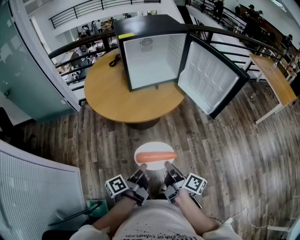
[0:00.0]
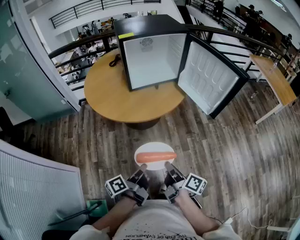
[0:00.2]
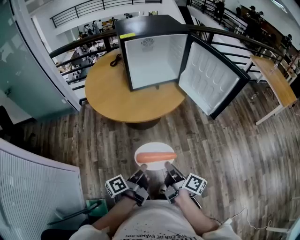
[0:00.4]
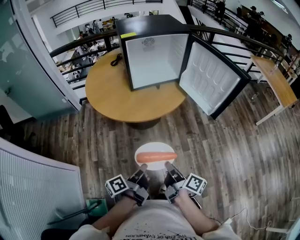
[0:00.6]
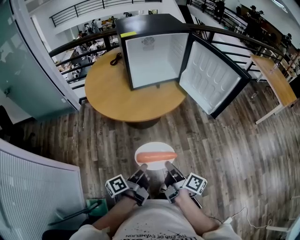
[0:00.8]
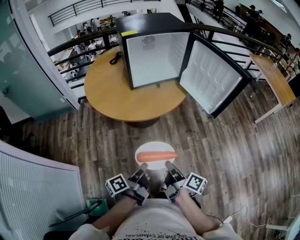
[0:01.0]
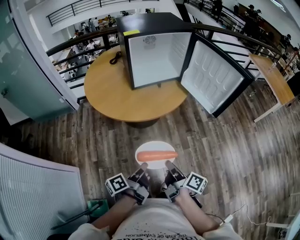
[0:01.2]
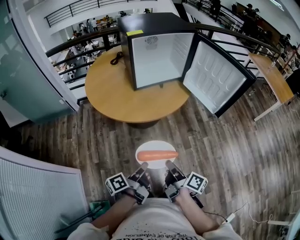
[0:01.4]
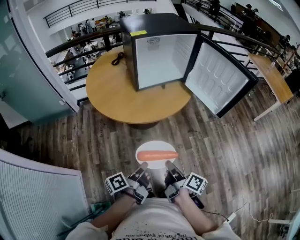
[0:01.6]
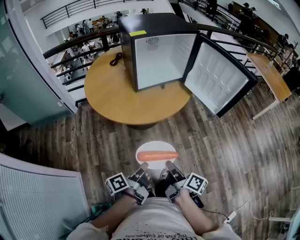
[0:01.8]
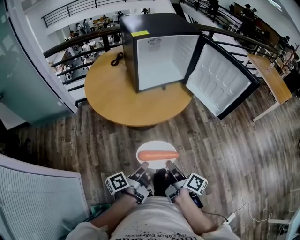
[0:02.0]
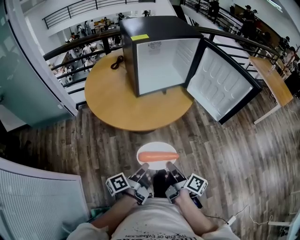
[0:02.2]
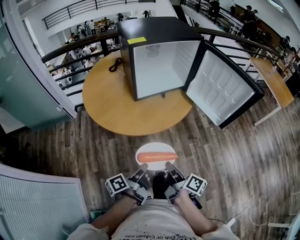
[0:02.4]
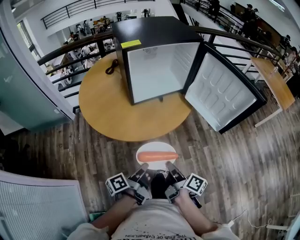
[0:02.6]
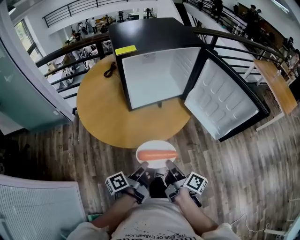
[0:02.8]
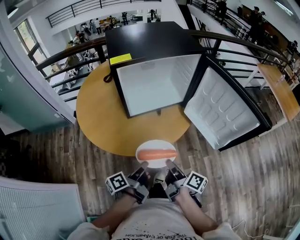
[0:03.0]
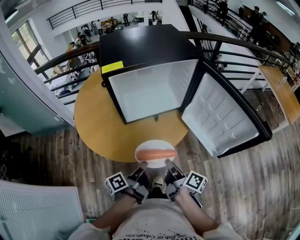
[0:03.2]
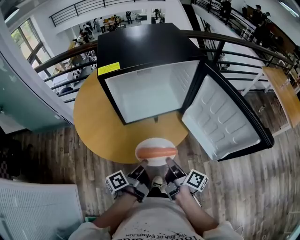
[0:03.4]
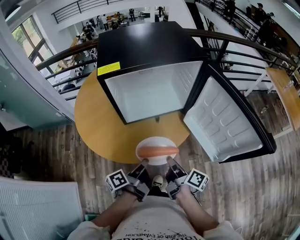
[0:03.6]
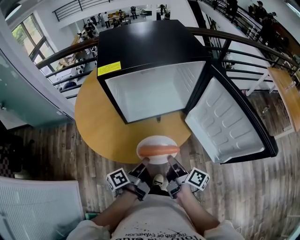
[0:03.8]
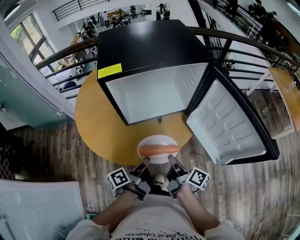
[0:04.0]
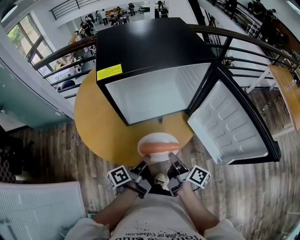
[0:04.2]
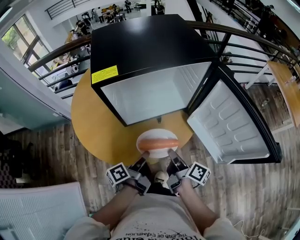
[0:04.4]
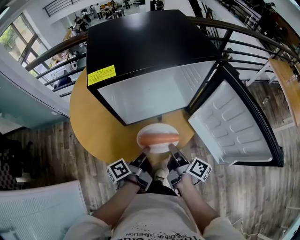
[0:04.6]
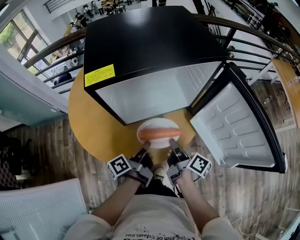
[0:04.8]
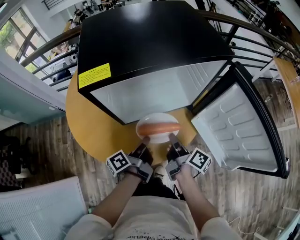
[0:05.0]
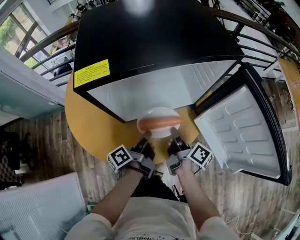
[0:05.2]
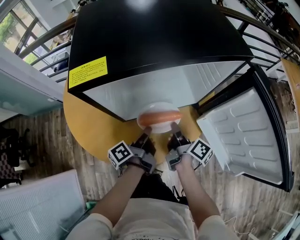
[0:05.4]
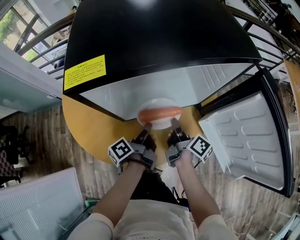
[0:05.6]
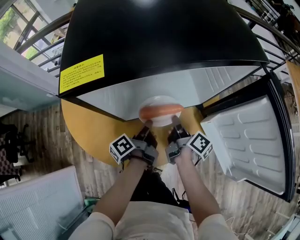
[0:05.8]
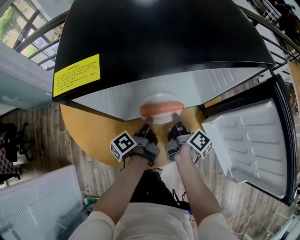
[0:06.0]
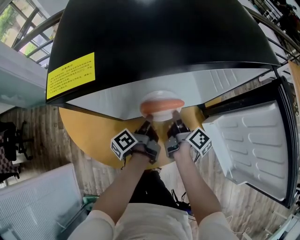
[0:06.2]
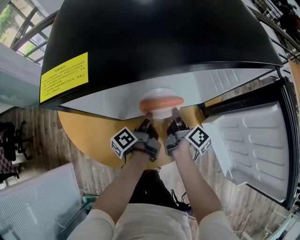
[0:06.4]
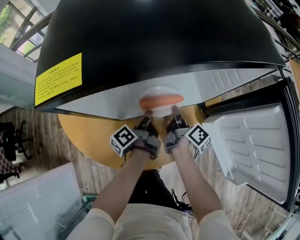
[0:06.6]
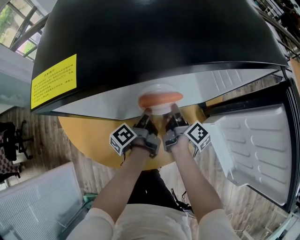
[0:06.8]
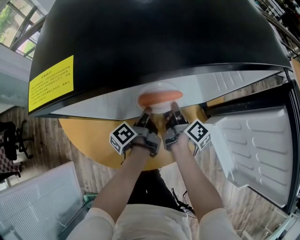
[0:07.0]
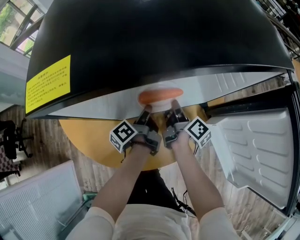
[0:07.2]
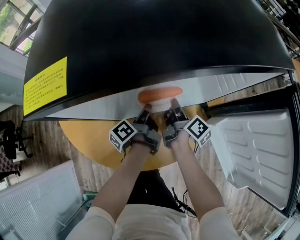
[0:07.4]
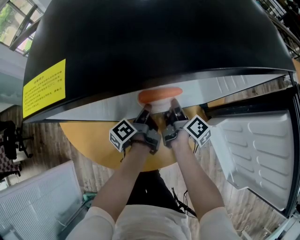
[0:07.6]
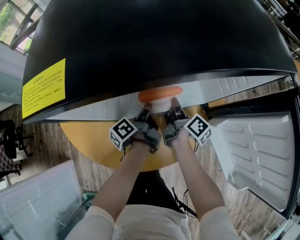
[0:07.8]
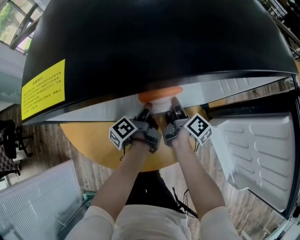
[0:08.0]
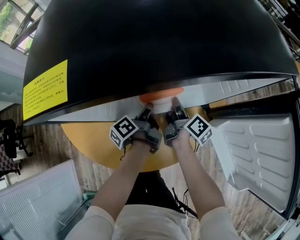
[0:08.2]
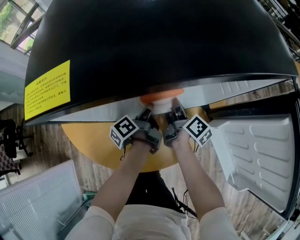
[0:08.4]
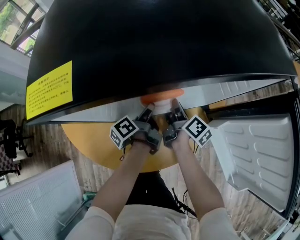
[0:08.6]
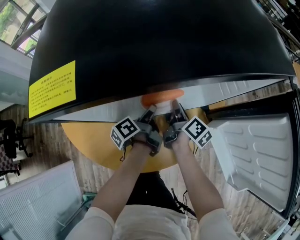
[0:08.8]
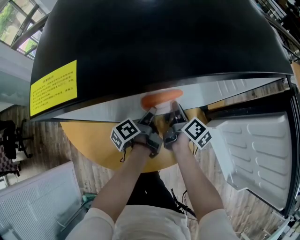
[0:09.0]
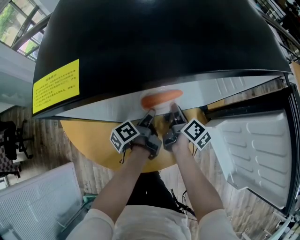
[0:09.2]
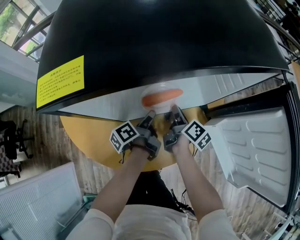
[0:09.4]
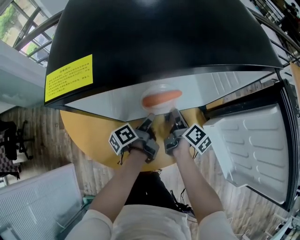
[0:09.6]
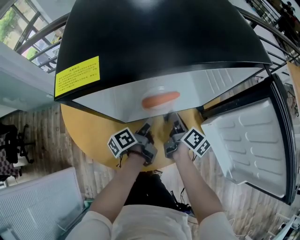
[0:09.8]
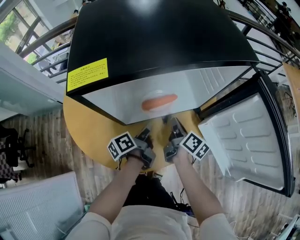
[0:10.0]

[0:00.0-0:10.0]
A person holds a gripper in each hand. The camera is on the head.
0:00.0 to 0:01.4: The right gripper ends up some 5 cm from where it was.
0:01.4 to 0:02.8: The right gripper moves about 20 cm.
0:02.8 to 0:04.2: The right gripper moves roughly 20 cm.
0:04.2 to 0:05.8: The right gripper ends up roughly 25 cm from where it was.
0:05.8 to 0:07.2: The right gripper ends up approximately 10 cm from where it was.
0:08.6 to 0:10.0: The right gripper ends up approximately 10 cm from where it was.

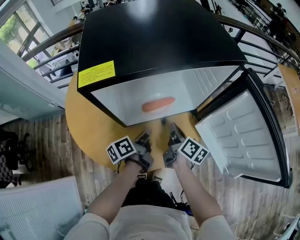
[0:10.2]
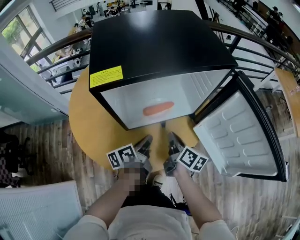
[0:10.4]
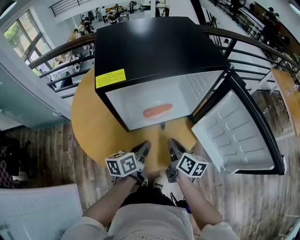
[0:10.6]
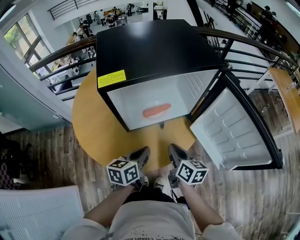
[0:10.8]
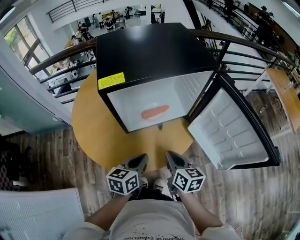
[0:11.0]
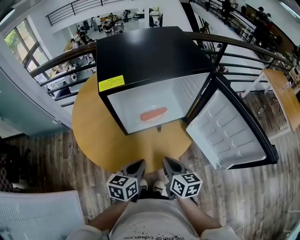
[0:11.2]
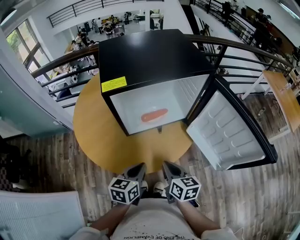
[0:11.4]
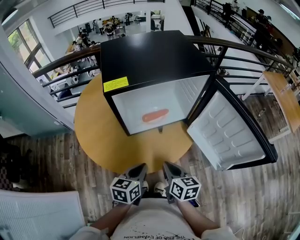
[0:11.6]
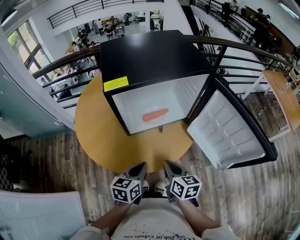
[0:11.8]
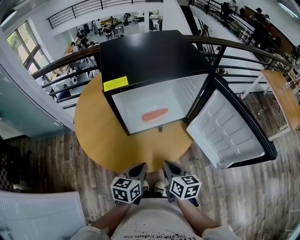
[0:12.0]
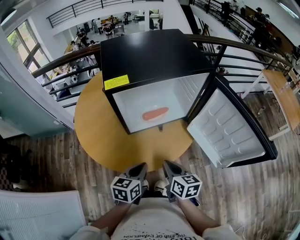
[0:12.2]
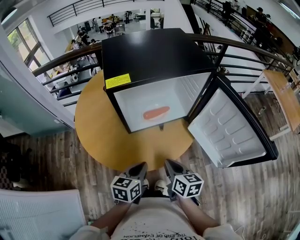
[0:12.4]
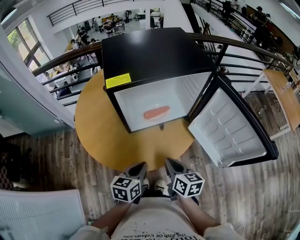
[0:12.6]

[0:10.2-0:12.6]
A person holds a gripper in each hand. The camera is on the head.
0:10.2 to 0:11.4: The right gripper ends up approximately 20 cm from where it was, and turns by some 30 degrees.

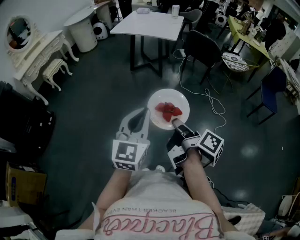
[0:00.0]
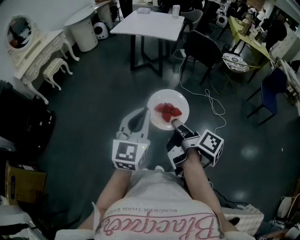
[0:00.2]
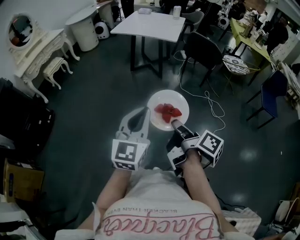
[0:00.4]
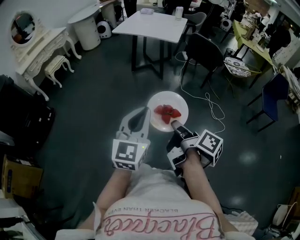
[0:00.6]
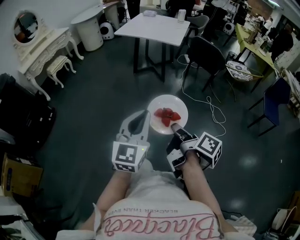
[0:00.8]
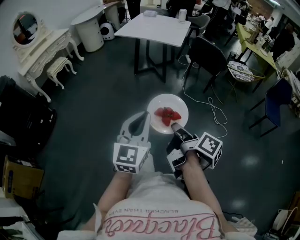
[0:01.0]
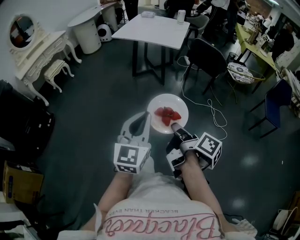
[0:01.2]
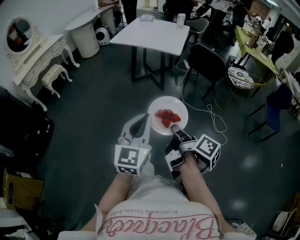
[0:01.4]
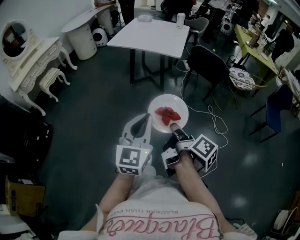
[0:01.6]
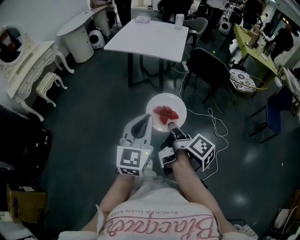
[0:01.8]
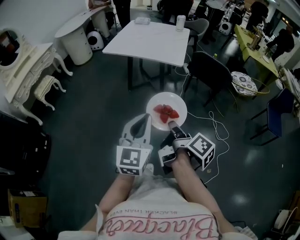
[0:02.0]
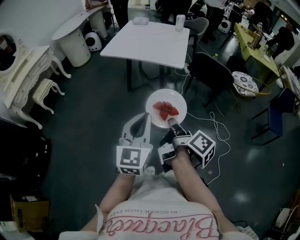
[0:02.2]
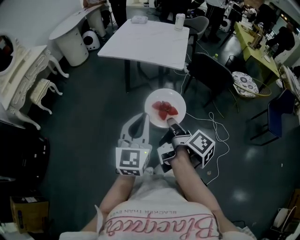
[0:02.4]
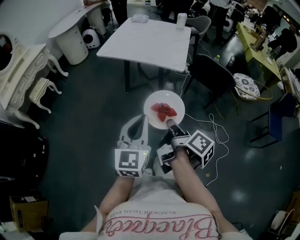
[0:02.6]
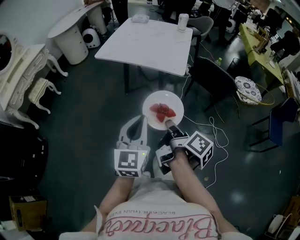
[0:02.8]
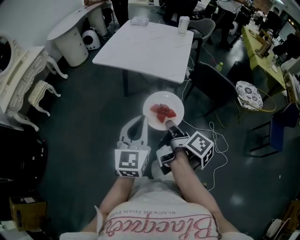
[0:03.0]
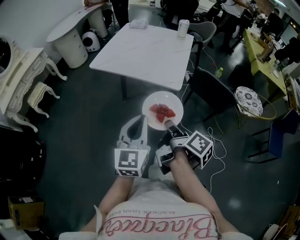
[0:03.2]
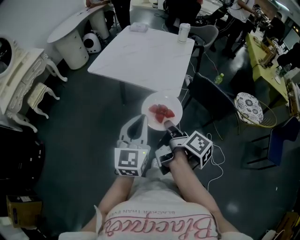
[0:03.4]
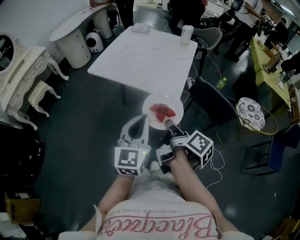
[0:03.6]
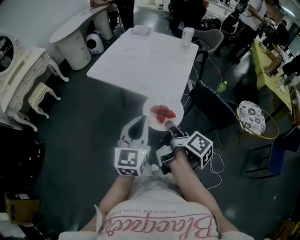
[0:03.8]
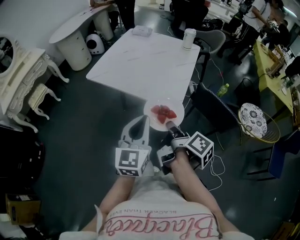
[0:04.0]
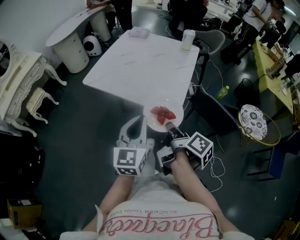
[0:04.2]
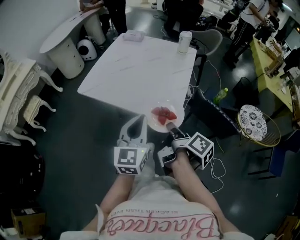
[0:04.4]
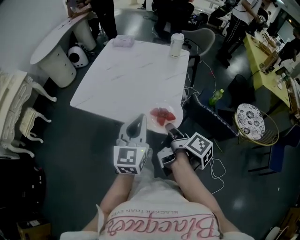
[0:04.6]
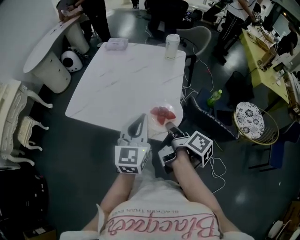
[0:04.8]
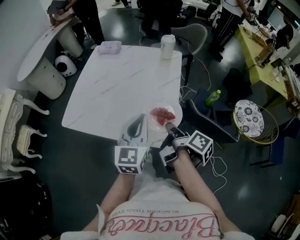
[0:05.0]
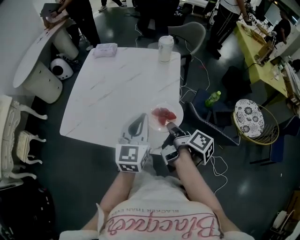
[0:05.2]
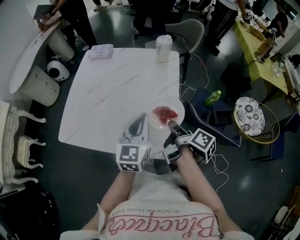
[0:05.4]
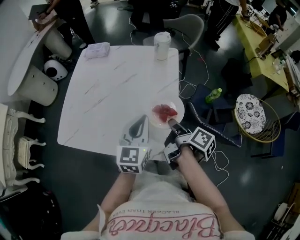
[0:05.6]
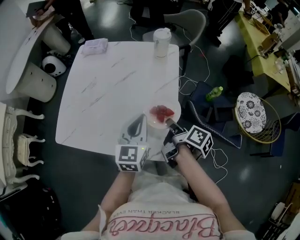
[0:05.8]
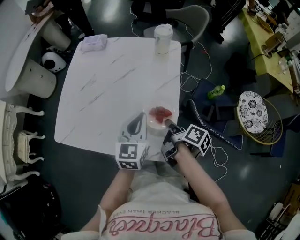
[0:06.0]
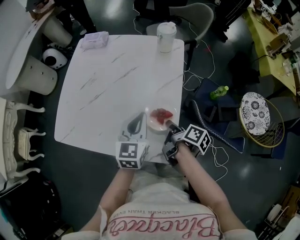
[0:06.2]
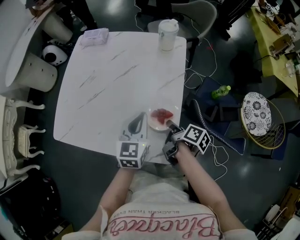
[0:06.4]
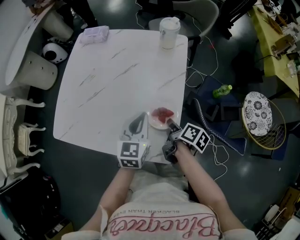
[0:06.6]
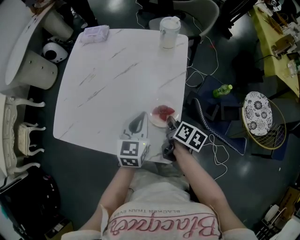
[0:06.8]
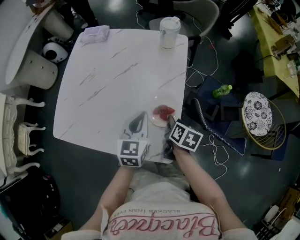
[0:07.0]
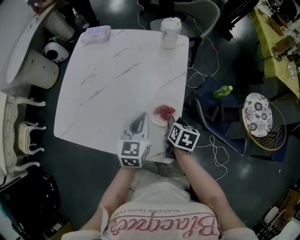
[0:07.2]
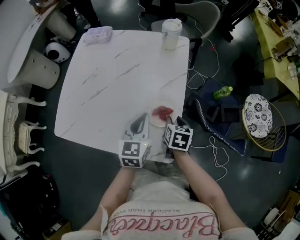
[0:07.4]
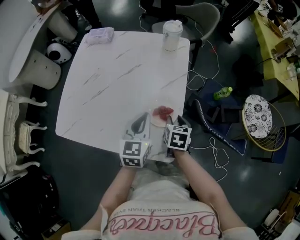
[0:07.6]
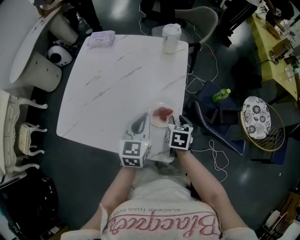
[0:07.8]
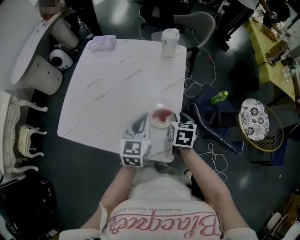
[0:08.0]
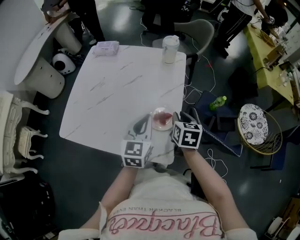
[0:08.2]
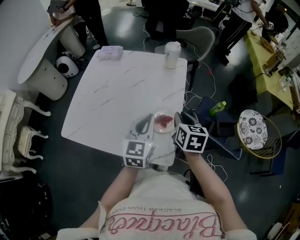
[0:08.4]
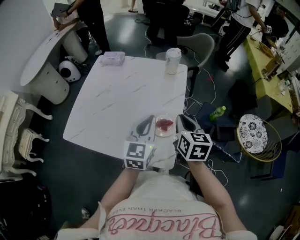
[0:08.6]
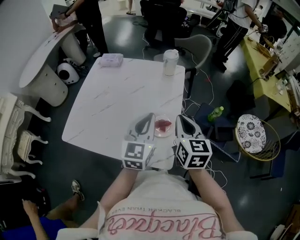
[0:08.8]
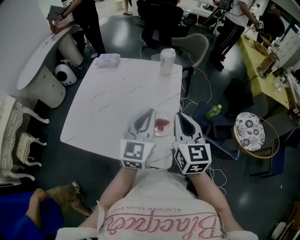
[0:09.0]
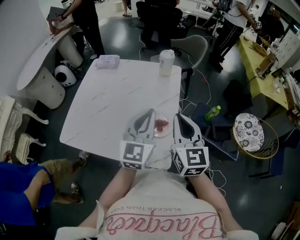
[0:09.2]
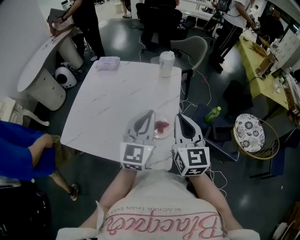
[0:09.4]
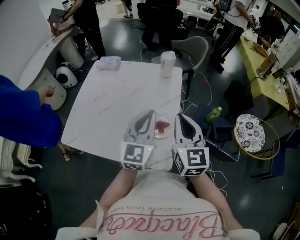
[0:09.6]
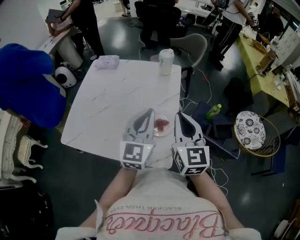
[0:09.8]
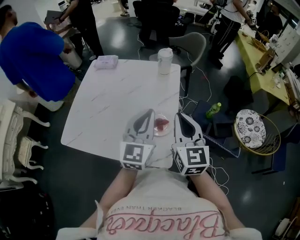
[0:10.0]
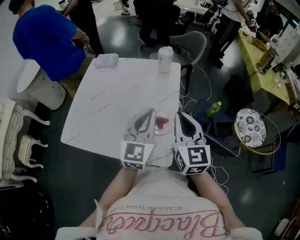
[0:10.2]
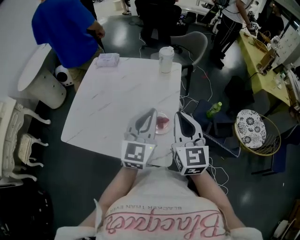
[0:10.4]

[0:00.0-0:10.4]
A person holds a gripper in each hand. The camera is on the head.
0:00.0 to 0:01.4: The grippers both shift forward by about 15 cm.
0:01.4 to 0:03.0: The pair of grippers is taken forward, some 40 cm.
0:03.0 to 0:04.4: The grippers both shift forward by roughly 30 cm.
0:04.4 to 0:06.0: The left gripper heads forward, covering some 30 cm; the right gripper heads forward and downward, covering some 30 cm.
0:06.0 to 0:07.4: The right gripper travels downward by about 5 cm, twists some 50 degrees counterclockwise, seen from behind, and opens up.
0:07.4 to 0:09.0: The right gripper is displaced upward by roughly 25 cm, points its fingers about 40 degrees further upward, and closes up, while the left gripper is displaced upward by roughly 15 cm, and rotates about 20 degrees.
0:09.0 to 0:10.4: The grippers stay close to where they were, moving slightly.

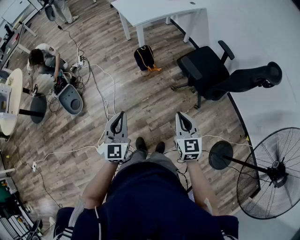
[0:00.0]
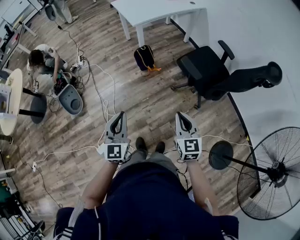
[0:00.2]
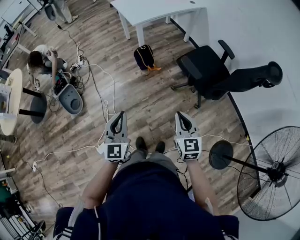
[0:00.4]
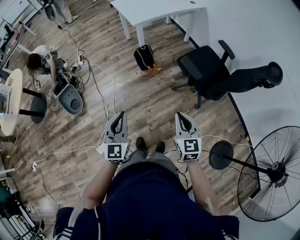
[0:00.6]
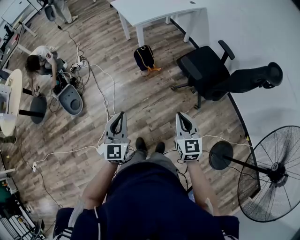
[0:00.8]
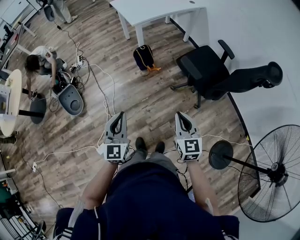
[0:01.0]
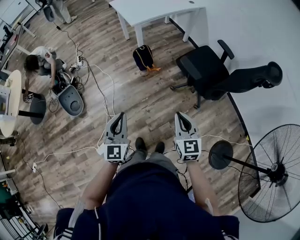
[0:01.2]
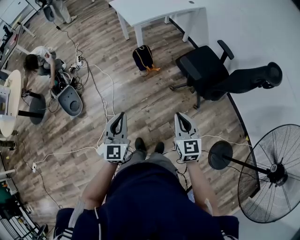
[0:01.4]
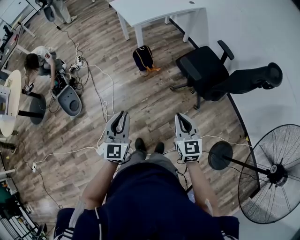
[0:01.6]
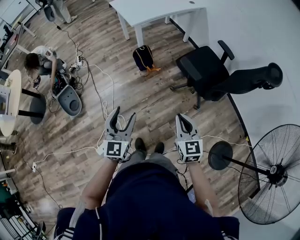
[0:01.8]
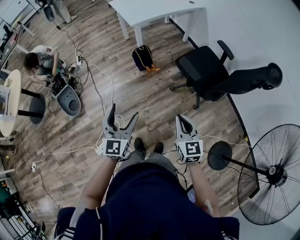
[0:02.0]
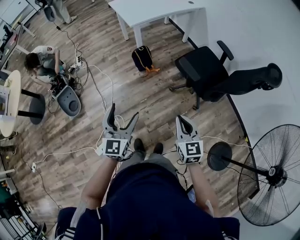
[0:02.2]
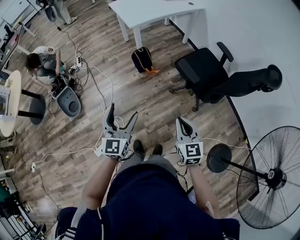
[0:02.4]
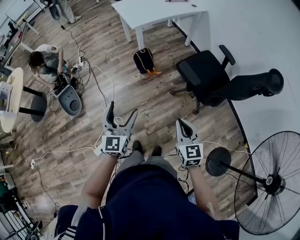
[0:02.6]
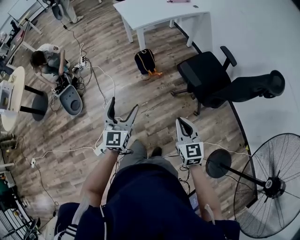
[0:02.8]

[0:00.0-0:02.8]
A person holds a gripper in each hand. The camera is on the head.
0:00.0 to 0:01.4: The grippers stay close to where they were, moving slightly.
0:01.4 to 0:02.8: The left gripper shifts some 5 cm forward, and opens.
